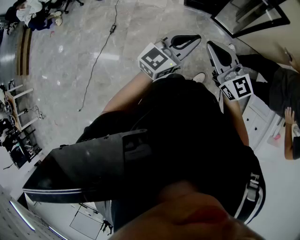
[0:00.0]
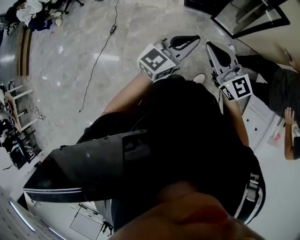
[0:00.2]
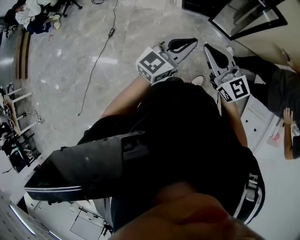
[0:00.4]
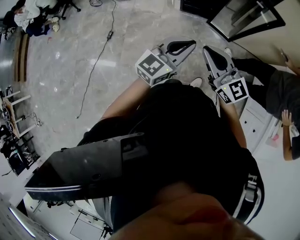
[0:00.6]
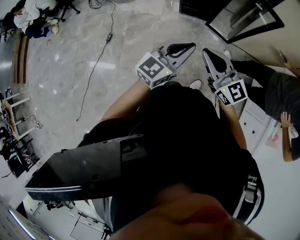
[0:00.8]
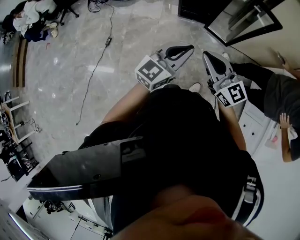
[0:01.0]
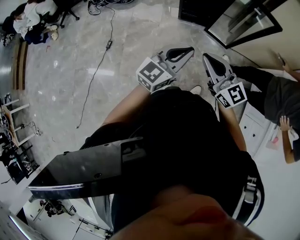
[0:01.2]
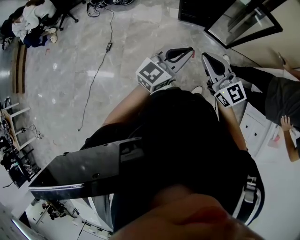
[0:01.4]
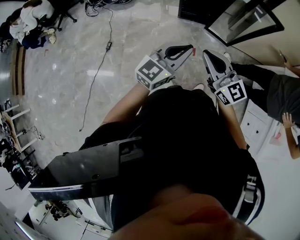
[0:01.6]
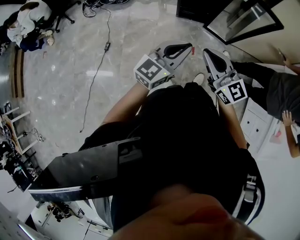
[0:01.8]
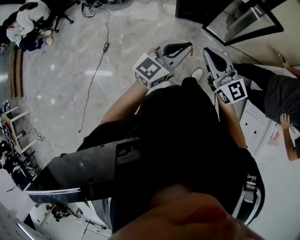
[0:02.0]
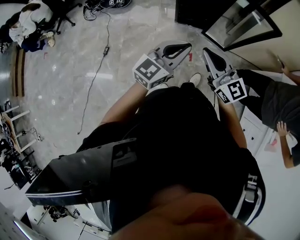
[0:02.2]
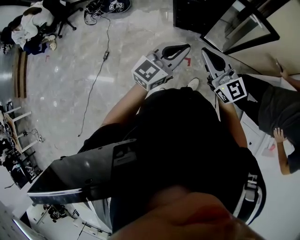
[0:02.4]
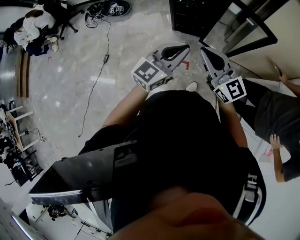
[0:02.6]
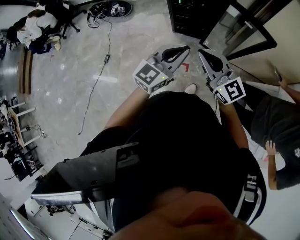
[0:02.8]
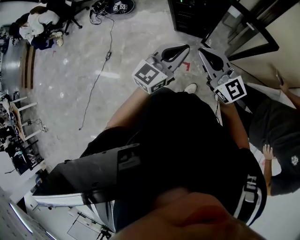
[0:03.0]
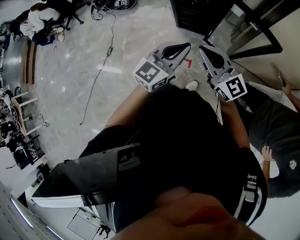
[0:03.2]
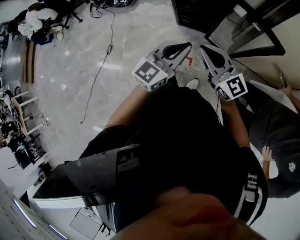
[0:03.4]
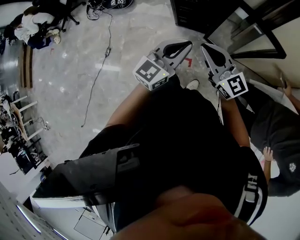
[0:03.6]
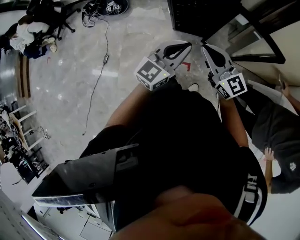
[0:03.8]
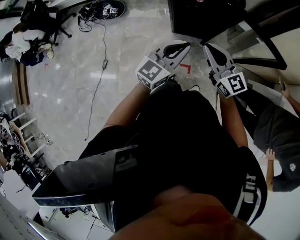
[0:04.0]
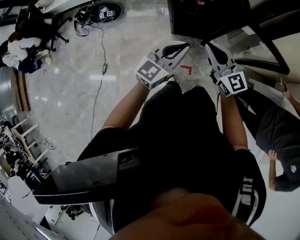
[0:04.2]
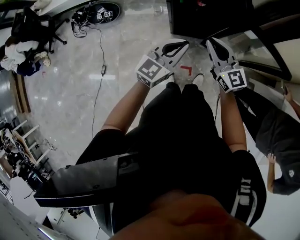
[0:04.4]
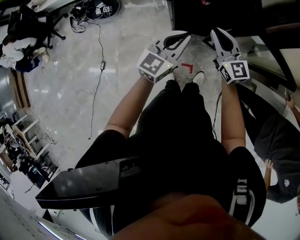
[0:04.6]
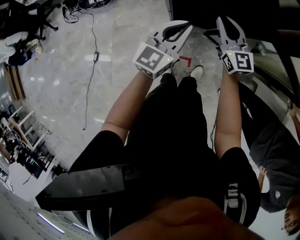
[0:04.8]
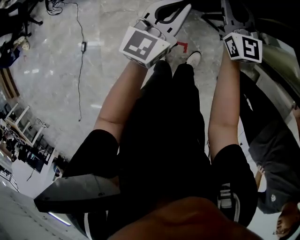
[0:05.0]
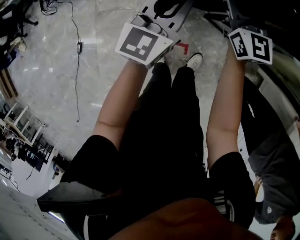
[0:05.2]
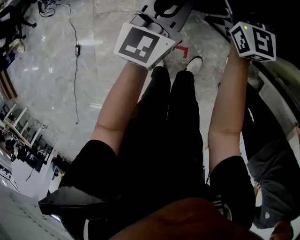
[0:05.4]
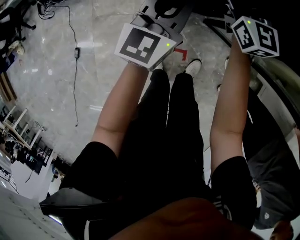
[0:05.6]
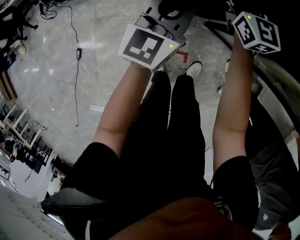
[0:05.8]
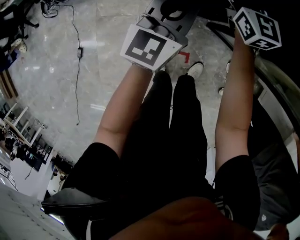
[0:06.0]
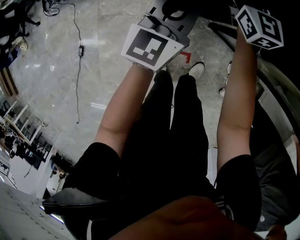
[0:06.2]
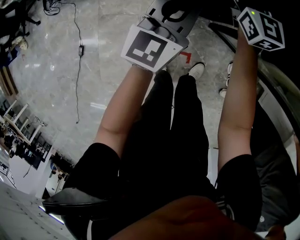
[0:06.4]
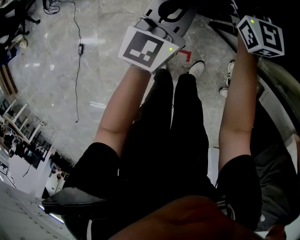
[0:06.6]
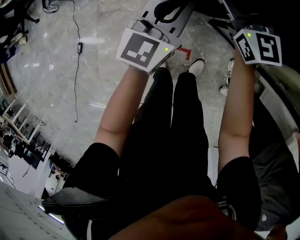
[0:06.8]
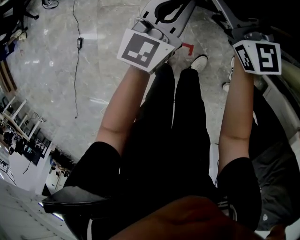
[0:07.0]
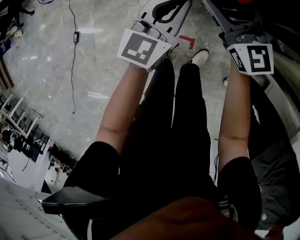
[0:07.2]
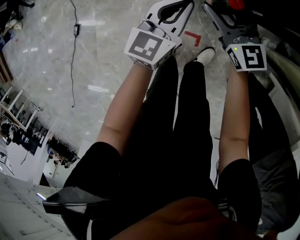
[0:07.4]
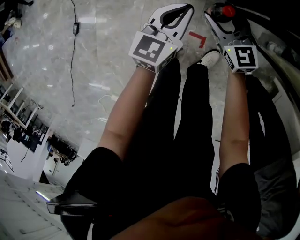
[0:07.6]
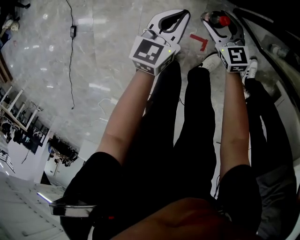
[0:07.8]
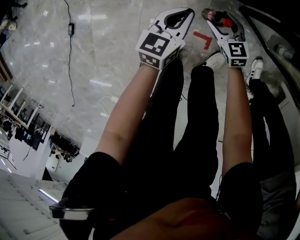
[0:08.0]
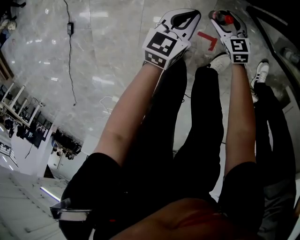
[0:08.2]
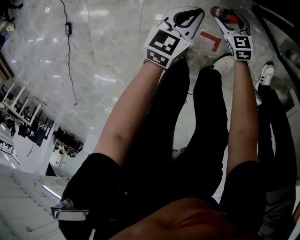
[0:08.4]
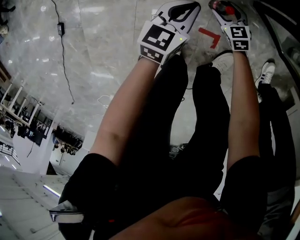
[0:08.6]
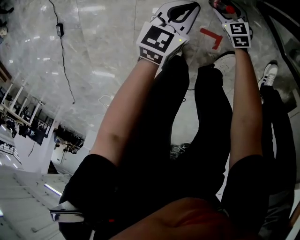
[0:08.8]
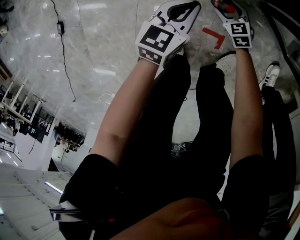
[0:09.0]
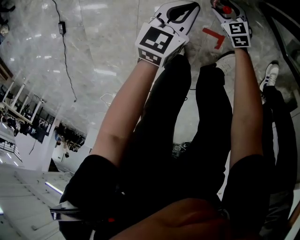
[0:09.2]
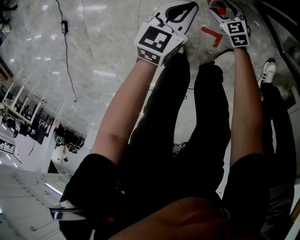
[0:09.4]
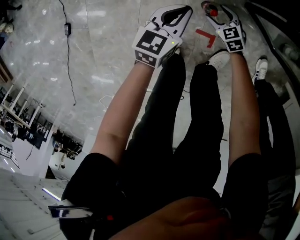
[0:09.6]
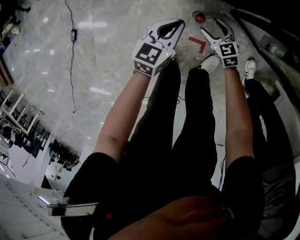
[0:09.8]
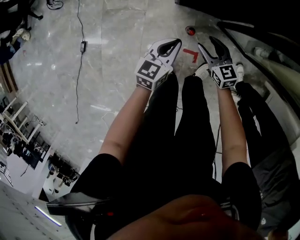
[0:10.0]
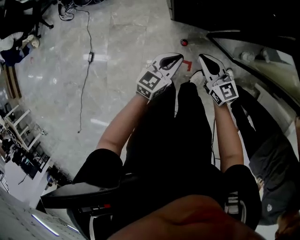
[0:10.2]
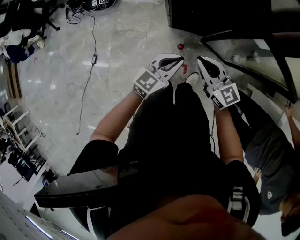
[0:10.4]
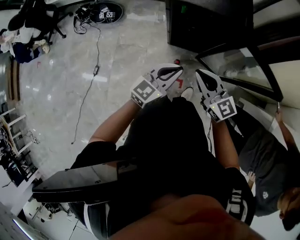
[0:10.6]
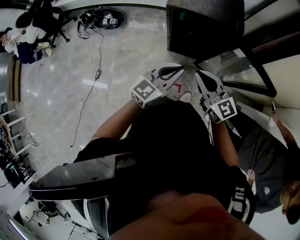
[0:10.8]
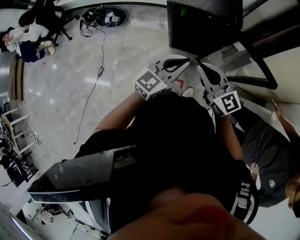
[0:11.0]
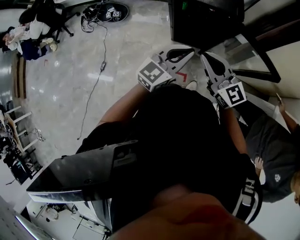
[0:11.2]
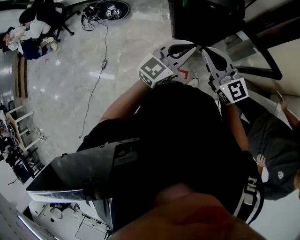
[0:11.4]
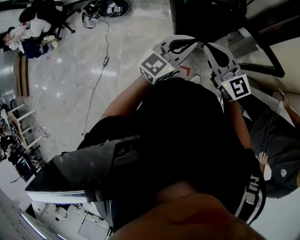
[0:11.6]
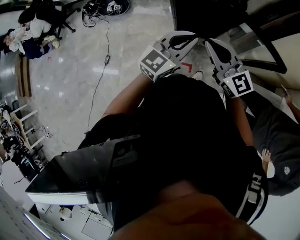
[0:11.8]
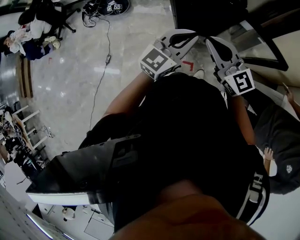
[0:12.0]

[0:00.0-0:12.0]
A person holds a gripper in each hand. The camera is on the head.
0:00.0 to 0:01.6: The two grippers go approximately 5 cm to the left.
0:01.6 to 0:03.0: Both grippers travel together forward and to the right, about 25 cm.
0:03.0 to 0:04.4: The left gripper travels forward, to the left and downward by roughly 25 cm. Meanwhile the right gripper is displaced forward and downward by roughly 30 cm, and turns by roughly 20 degrees.
0:04.4 to 0:06.0: The left gripper goes some 30 cm downward and forward. Meanwhile the right gripper is displaced forward and downward by approximately 35 cm, and opens up.
0:06.0 to 0:07.6: Both grippers move downward and backward, about 30 cm. The right gripper changes its angle by some 20 degrees.
0:07.6 to 0:09.0: Both grippers travel together downward, about 35 cm. The right gripper changes its angle by approximately 30 degrees.
0:09.0 to 0:10.4: The two grippers go roughly 70 cm upward. The left gripper rotates roughly 30 degrees, while the right gripper angles its fingers upward, by about 40 degrees, and closes up.
0:10.4 to 0:12.0: The grippers both shift upward by approximately 25 cm.

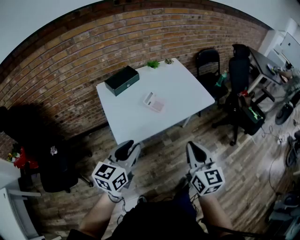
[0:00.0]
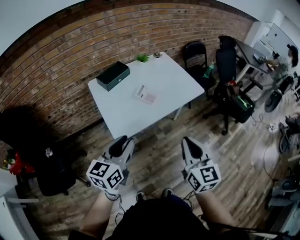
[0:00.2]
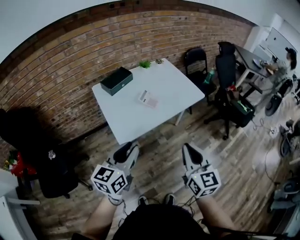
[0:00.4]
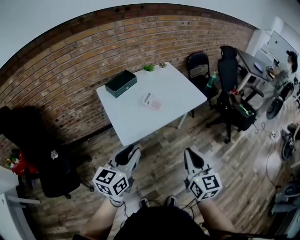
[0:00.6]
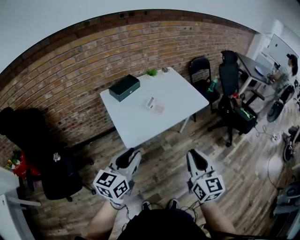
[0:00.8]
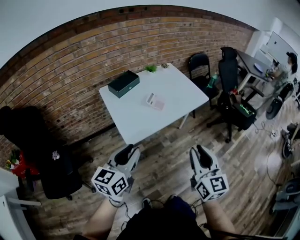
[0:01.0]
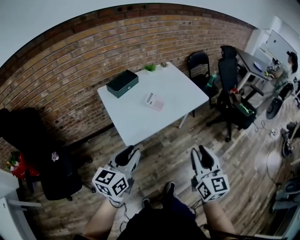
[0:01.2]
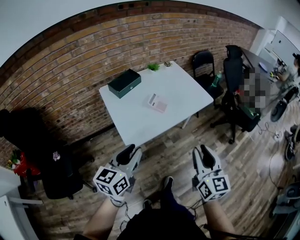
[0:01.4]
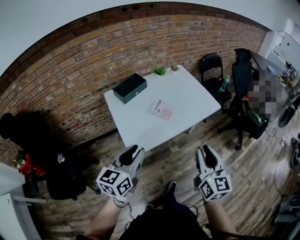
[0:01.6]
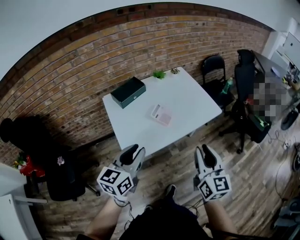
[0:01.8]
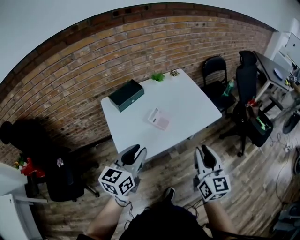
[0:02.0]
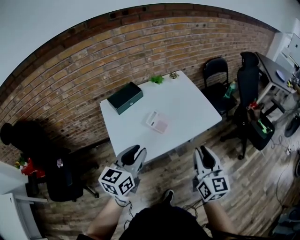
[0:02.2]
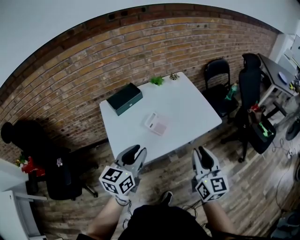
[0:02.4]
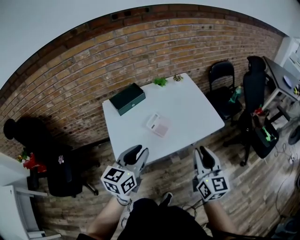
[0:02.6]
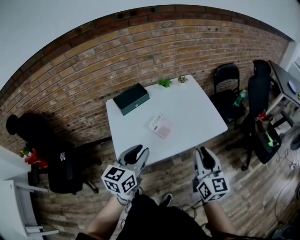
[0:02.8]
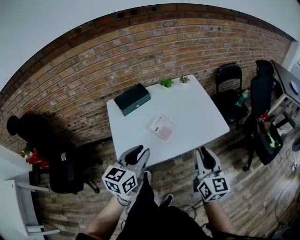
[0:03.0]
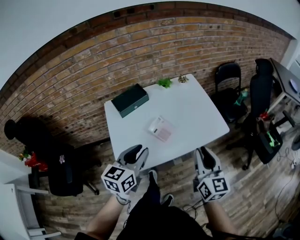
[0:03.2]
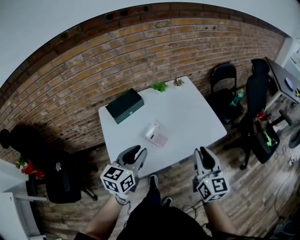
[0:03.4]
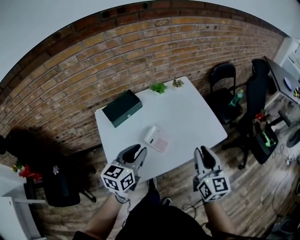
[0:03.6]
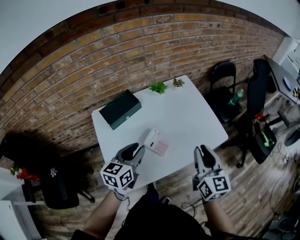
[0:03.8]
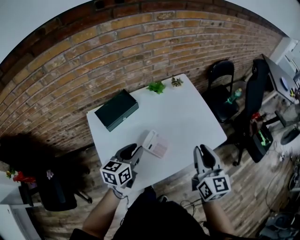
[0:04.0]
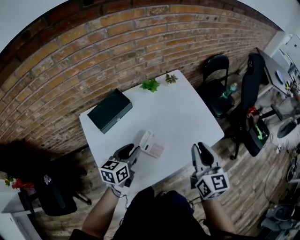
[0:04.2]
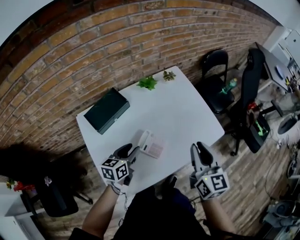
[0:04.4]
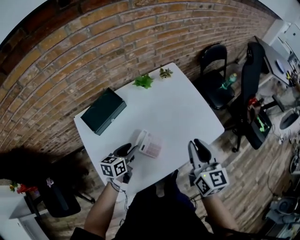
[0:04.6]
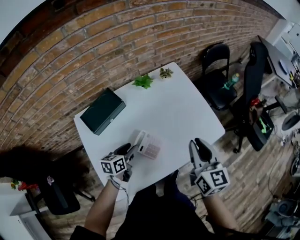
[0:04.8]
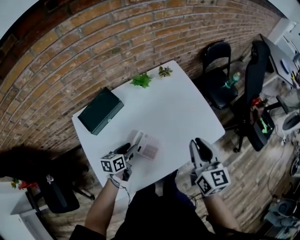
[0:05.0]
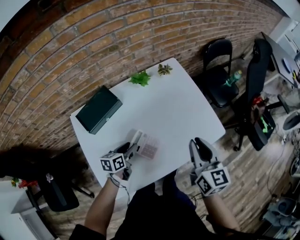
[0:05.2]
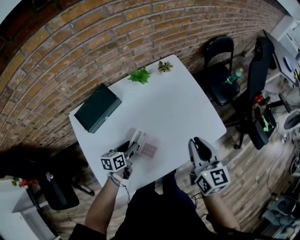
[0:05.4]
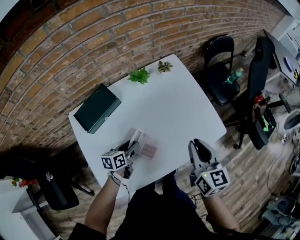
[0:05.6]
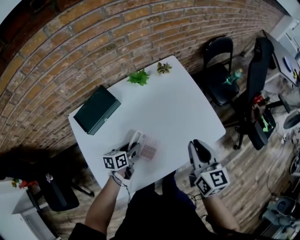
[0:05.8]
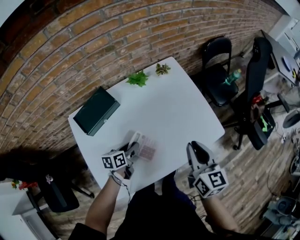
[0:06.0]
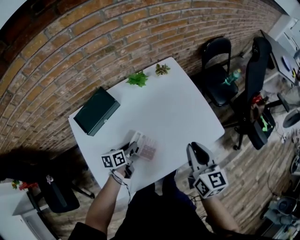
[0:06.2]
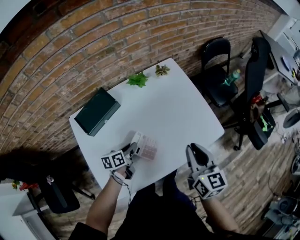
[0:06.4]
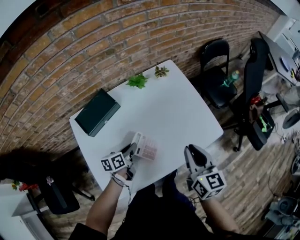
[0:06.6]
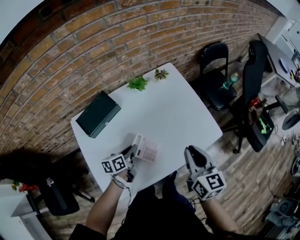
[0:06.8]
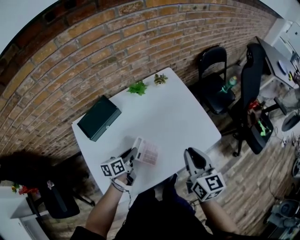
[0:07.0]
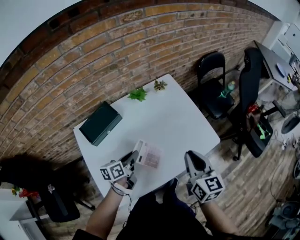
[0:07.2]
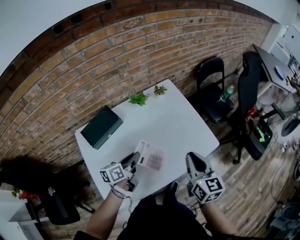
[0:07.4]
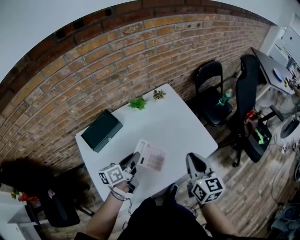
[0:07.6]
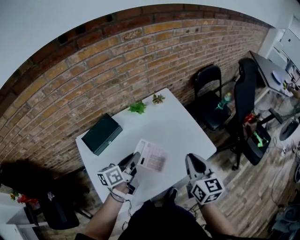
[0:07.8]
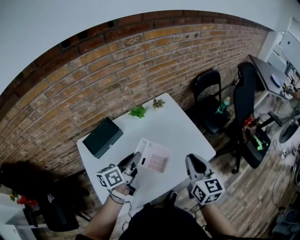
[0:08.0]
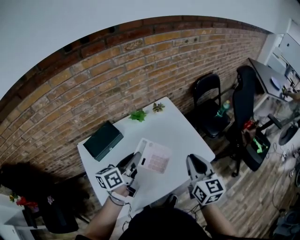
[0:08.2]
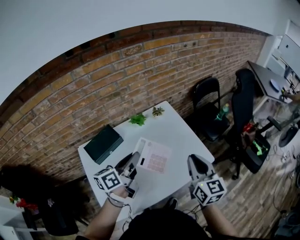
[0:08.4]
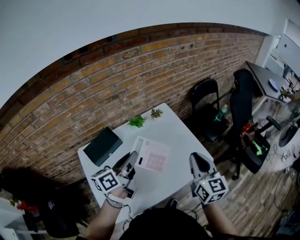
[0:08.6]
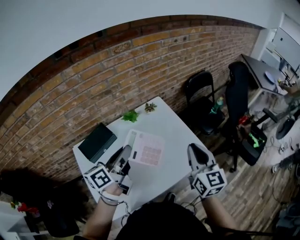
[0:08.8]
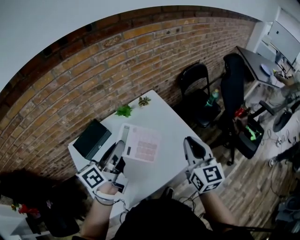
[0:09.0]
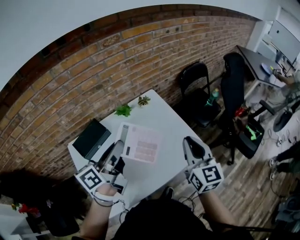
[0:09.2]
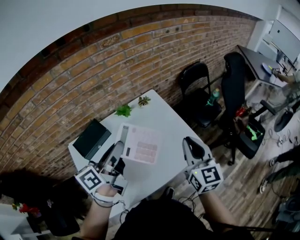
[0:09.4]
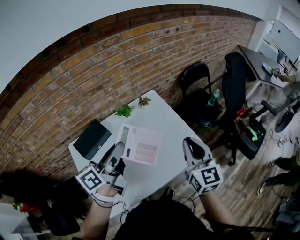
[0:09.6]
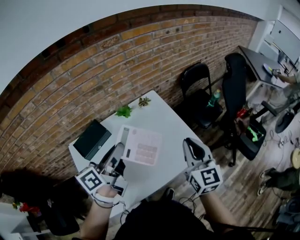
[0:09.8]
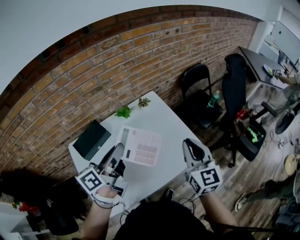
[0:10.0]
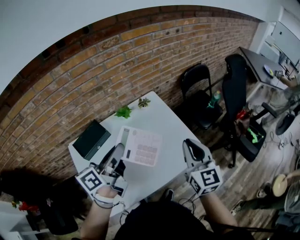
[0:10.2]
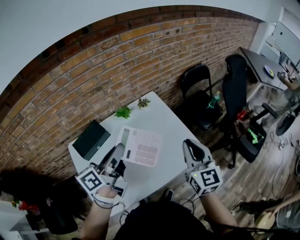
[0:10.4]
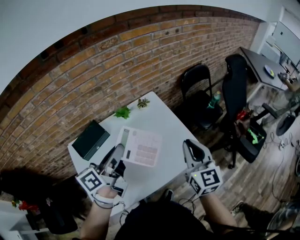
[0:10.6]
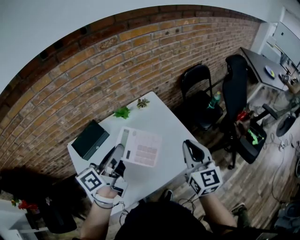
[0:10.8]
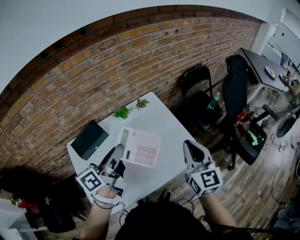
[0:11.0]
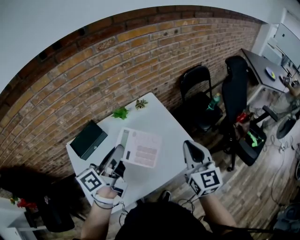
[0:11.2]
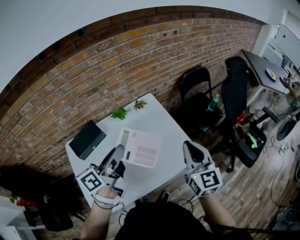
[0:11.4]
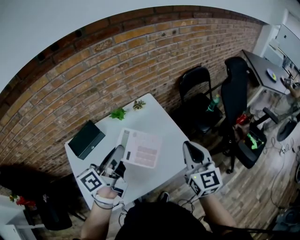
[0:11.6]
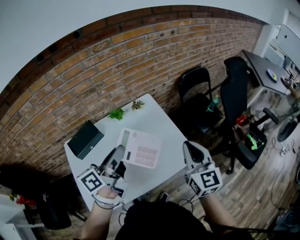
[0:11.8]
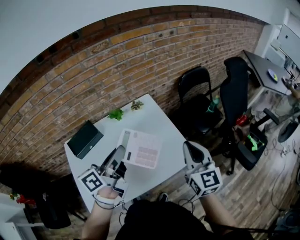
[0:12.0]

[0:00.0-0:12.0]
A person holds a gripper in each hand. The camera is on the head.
0:00.0 to 0:01.6: The right gripper moves approximately 10 cm backward and comes back, and opens its fingers. The left gripper shifts about 5 cm to the left, and reaches about 10 cm backward, then returns.
0:01.6 to 0:03.0: The left gripper goes about 20 cm forward and to the right. Meanwhile the right gripper heads forward, covering about 20 cm.
0:03.0 to 0:04.4: The left gripper is displaced forward and downward by roughly 30 cm, and changes its angle by some 20 degrees. Meanwhile the right gripper is displaced forward by about 20 cm.
0:04.4 to 0:06.0: Both grippers travel together downward and forward, about 10 cm.
0:06.0 to 0:07.6: The right gripper changes place by about 5 cm; the left gripper heads upward, covering about 15 cm, swivels roughly 20 degrees, and closes its fingers.
0:07.6 to 0:09.0: The left gripper goes roughly 20 cm upward. Meanwhile the right gripper moves upward, roughly 10 cm.
0:09.0 to 0:10.4: The grippers stay close to where they were, moving slightly.
0:10.4 to 0:12.0: The two grippers go roughly 10 cm to the right.
